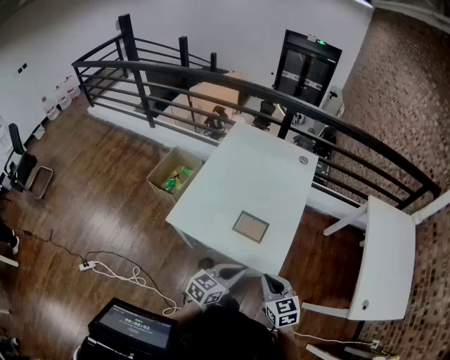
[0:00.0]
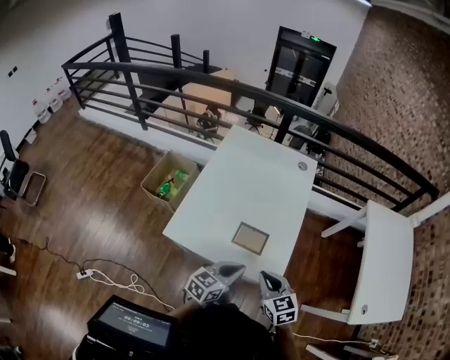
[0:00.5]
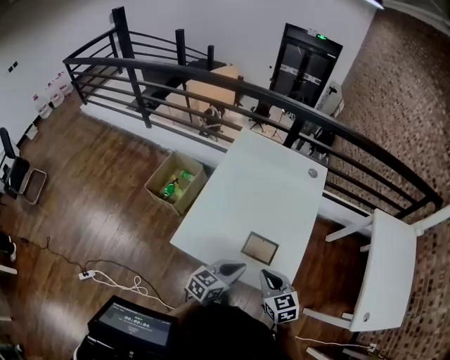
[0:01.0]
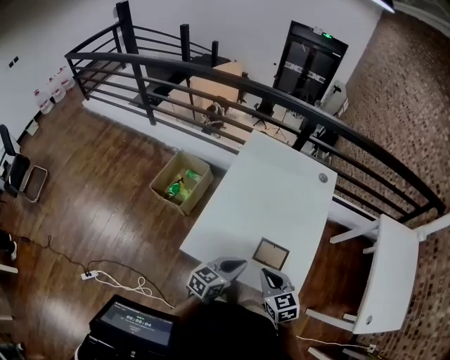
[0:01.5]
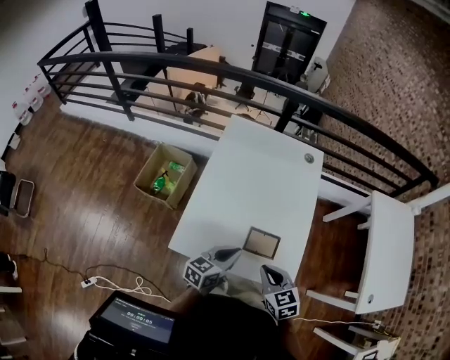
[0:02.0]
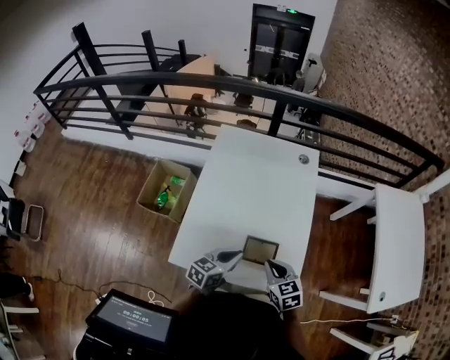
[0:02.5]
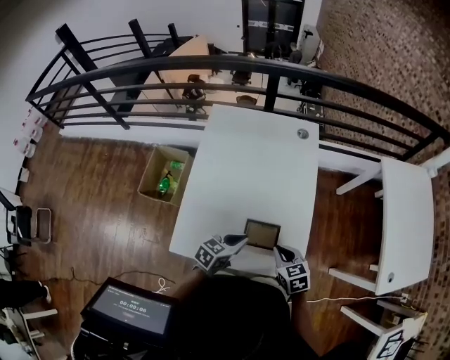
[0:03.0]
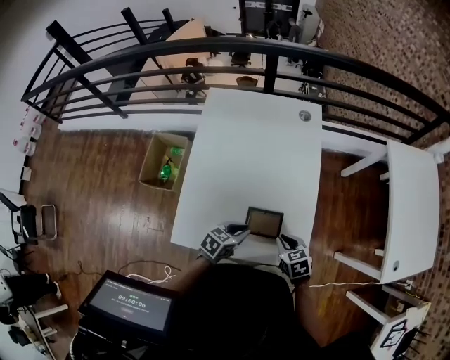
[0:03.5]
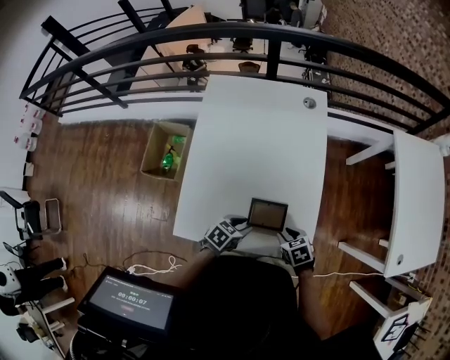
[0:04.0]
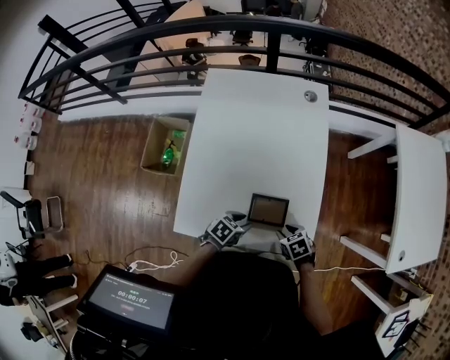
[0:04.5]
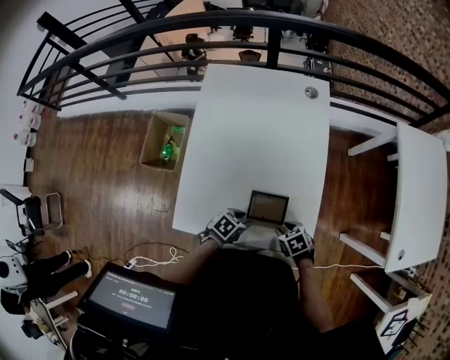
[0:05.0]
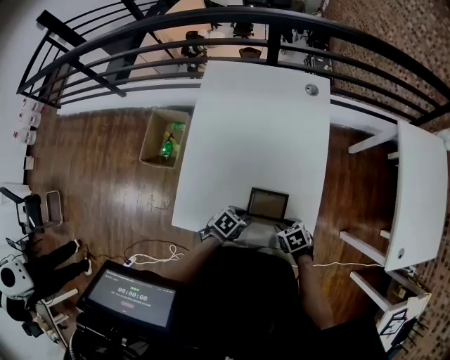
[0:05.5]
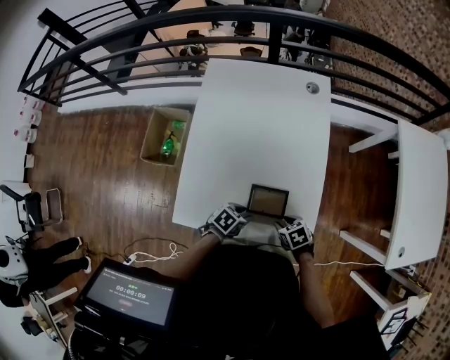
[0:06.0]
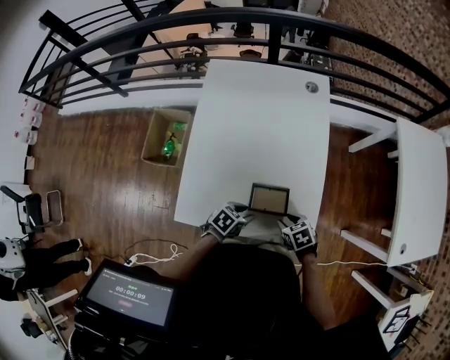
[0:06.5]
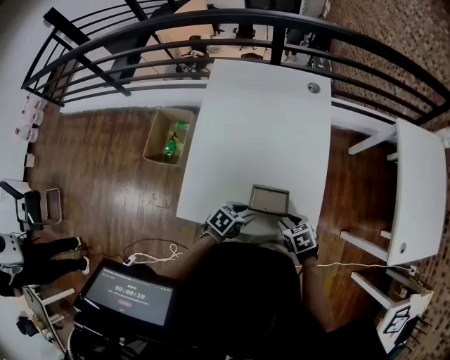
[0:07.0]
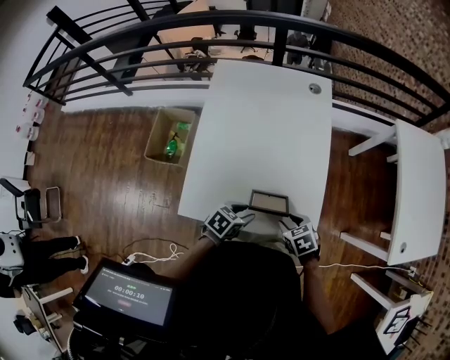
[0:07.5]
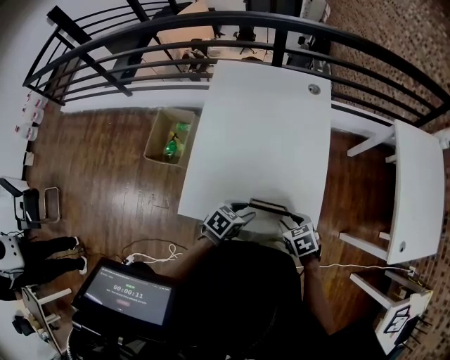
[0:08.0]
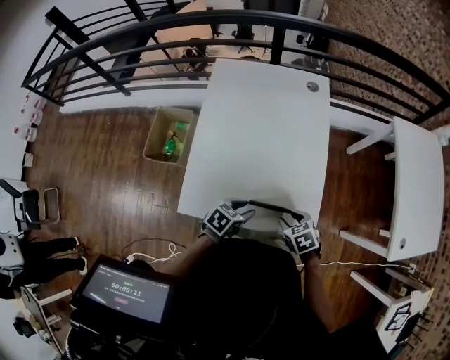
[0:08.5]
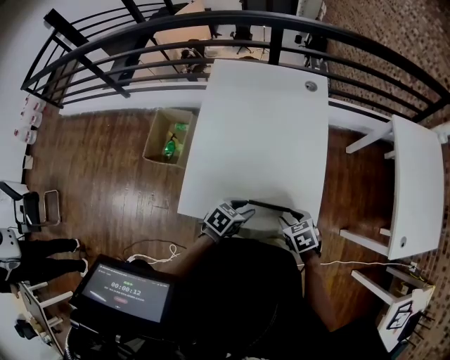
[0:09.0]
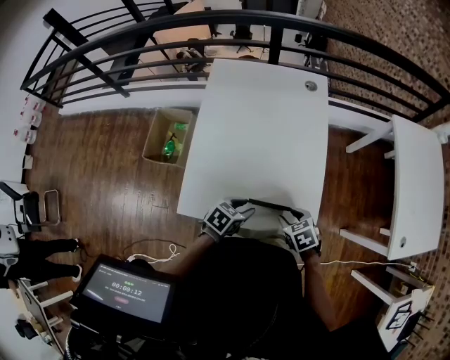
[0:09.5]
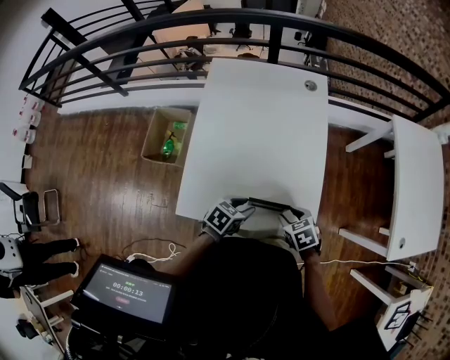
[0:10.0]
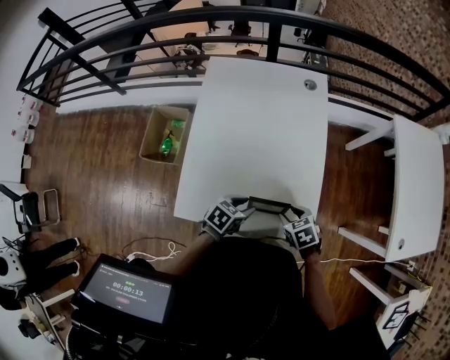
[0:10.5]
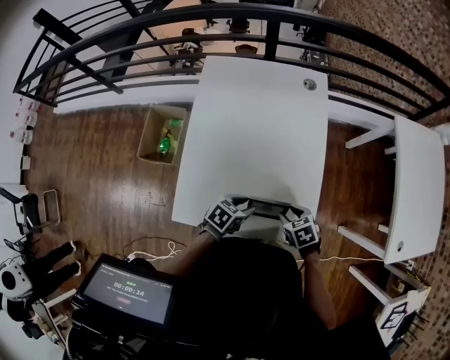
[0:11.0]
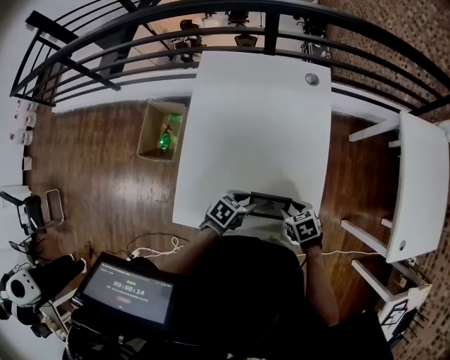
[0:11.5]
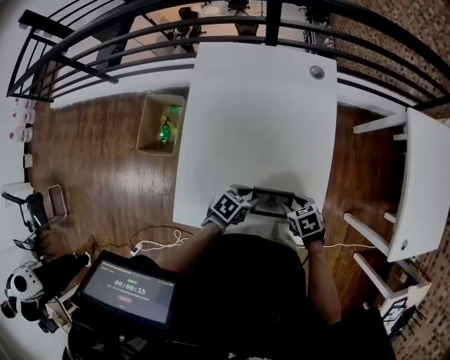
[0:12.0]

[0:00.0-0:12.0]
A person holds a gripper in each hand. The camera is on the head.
0:00.0 to 0:02.0: The left gripper goes about 20 cm forward and to the left; the right gripper travels to the left and forward by approximately 20 cm.
0:02.0 to 0:04.0: The two grippers go about 20 cm downward and to the right. The left gripper angles its fingers downward, by roughly 30 degrees, and opens its fingers; the right gripper rotates roughly 30 degrees, and opens its fingers.
0:04.0 to 0:06.0: The grippers move only a little.
0:06.0 to 0:08.0: Both grippers move upward, about 10 cm.
0:08.0 to 0:10.0: Both grippers stay put.
0:10.0 to 0:12.0: The left gripper ends up roughly 10 cm from where it was. Meanwhile the right gripper ends up about 10 cm from where it was.

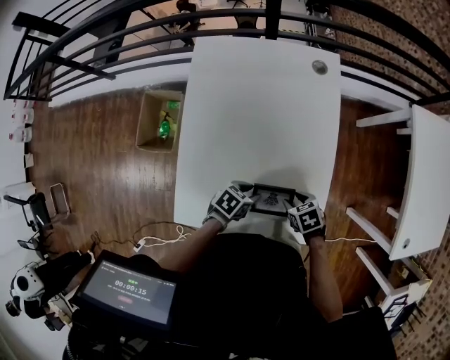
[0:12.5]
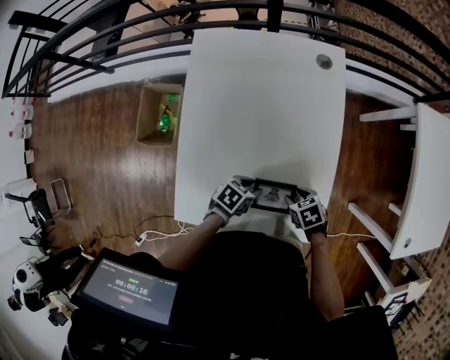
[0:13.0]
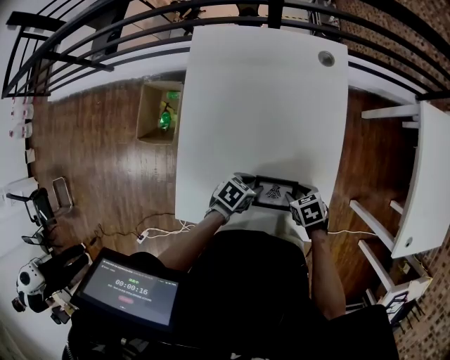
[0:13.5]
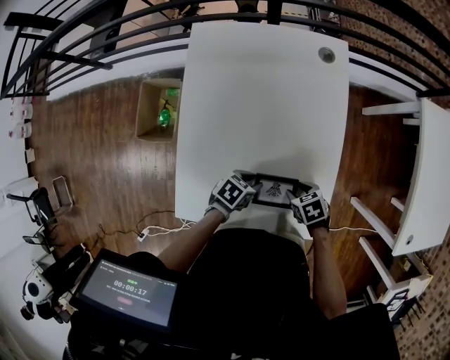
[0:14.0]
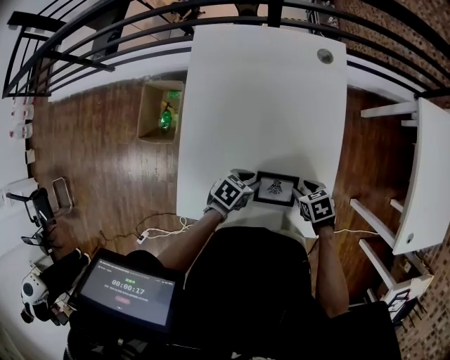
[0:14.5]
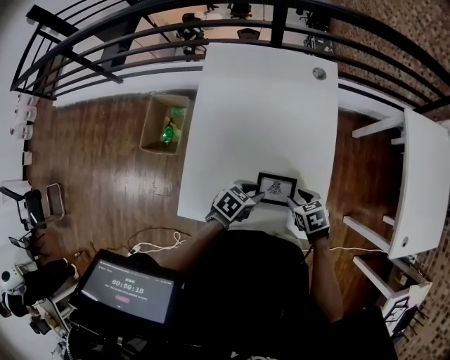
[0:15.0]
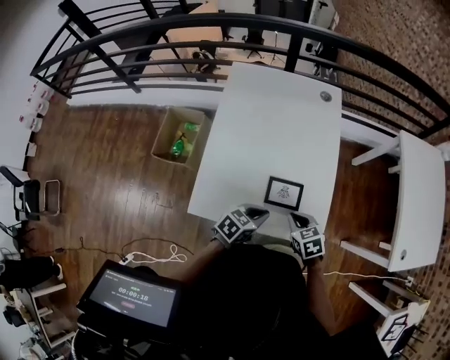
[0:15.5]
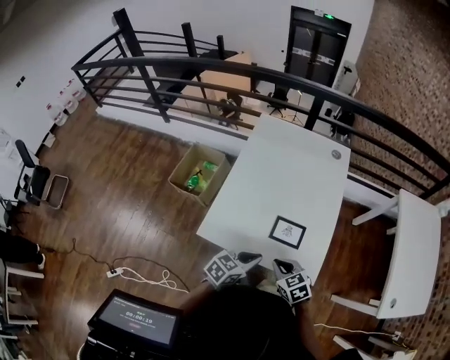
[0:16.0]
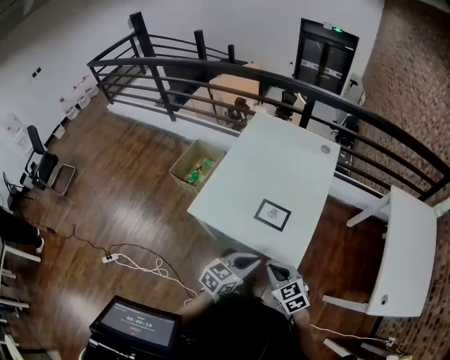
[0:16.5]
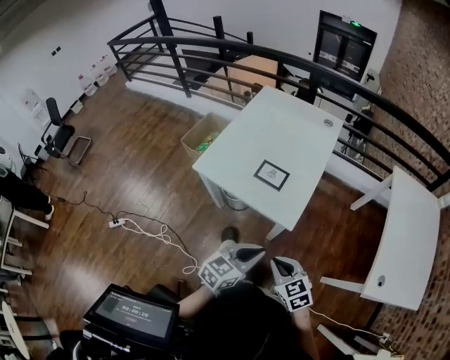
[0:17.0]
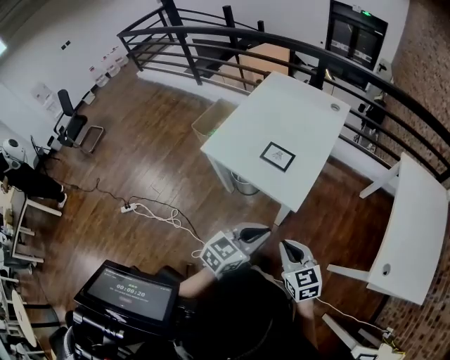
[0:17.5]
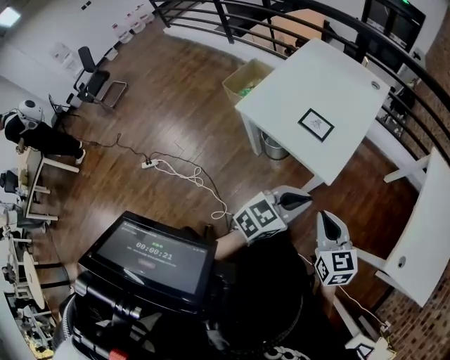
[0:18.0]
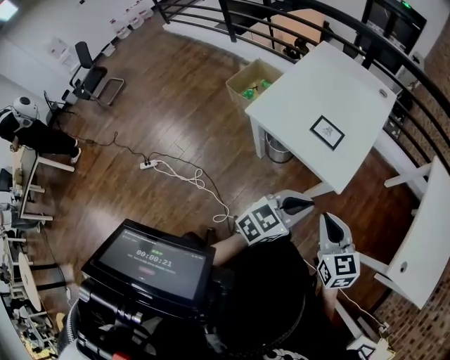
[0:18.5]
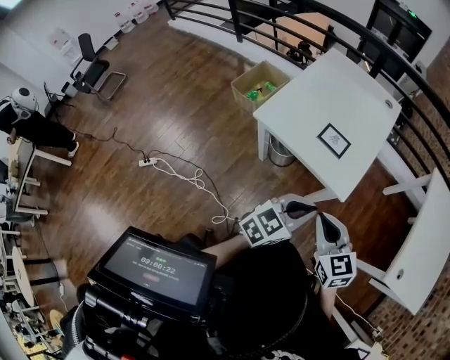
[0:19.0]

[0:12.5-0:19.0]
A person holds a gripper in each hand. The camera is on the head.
0:12.5 to 0:14.5: The grippers move only a little.
0:14.5 to 0:17.0: The two grippers travel together, approximately 40 cm. The left gripper angles its fingers upward, by about 30 degrees, and closes. The right gripper rotates roughly 50 degrees, and closes up.
0:17.0 to 0:19.0: The right gripper heads upward and to the left, covering about 15 cm. The left gripper heads to the left and upward, covering about 10 cm.

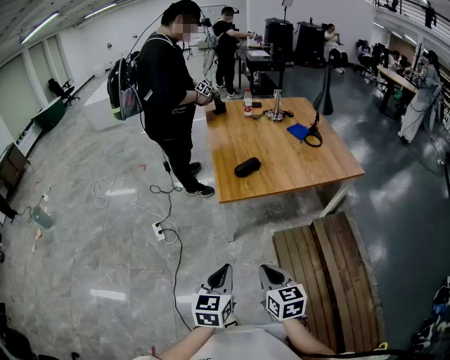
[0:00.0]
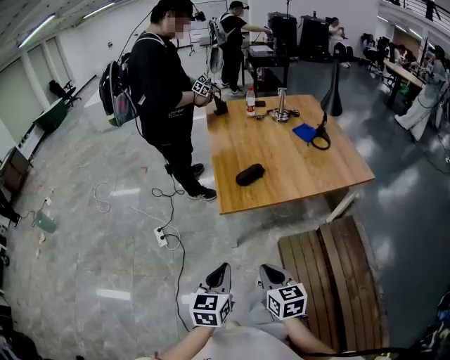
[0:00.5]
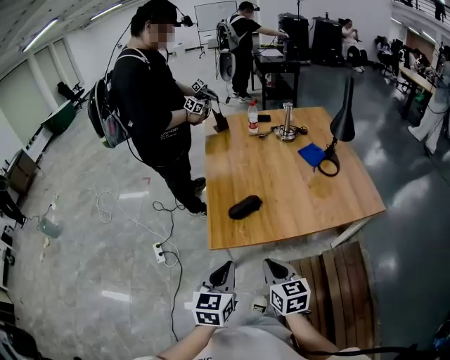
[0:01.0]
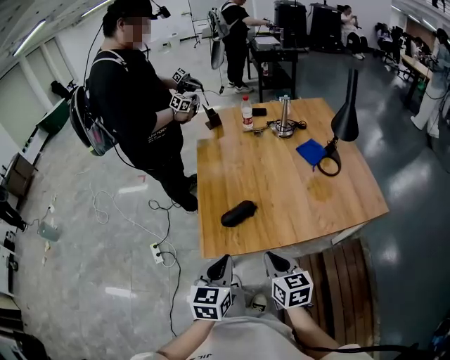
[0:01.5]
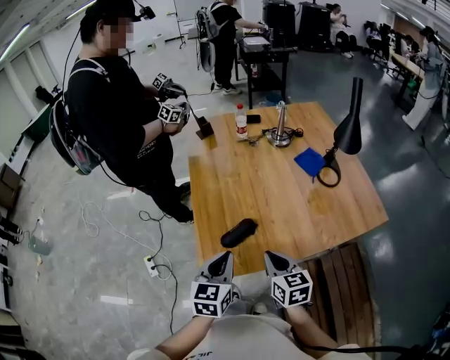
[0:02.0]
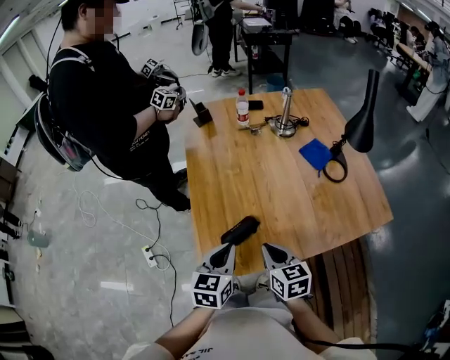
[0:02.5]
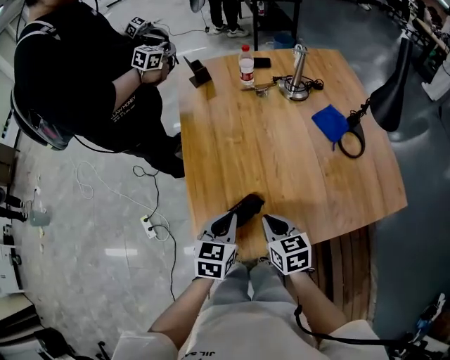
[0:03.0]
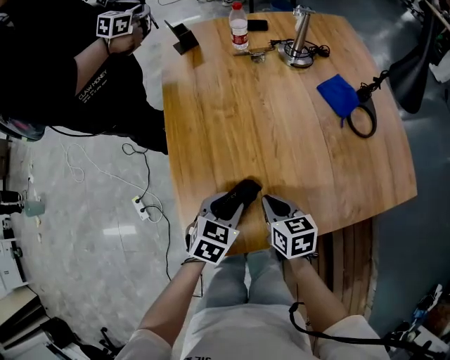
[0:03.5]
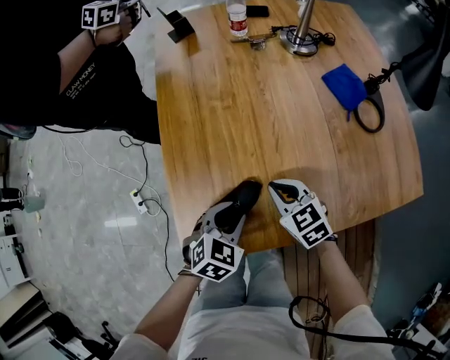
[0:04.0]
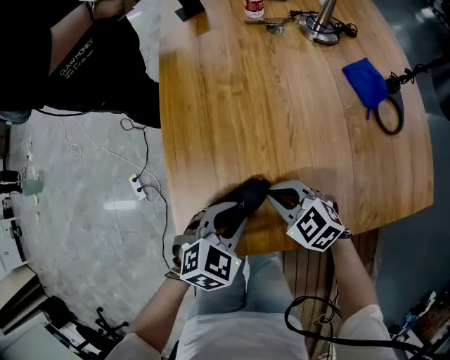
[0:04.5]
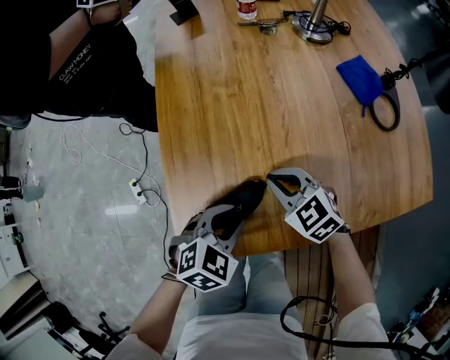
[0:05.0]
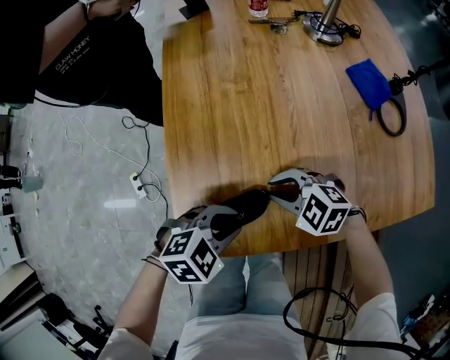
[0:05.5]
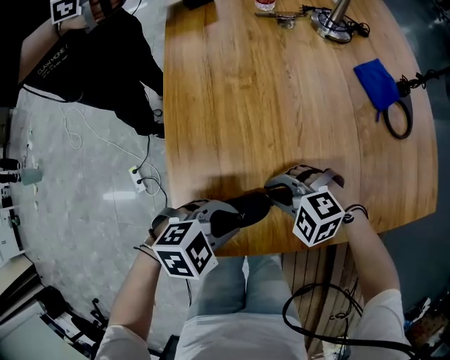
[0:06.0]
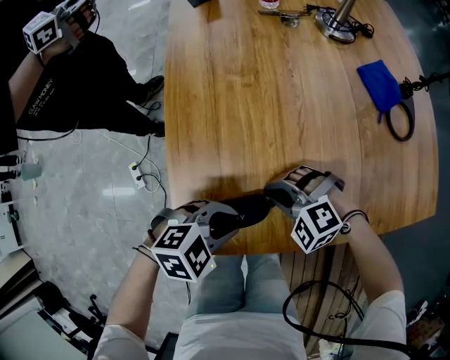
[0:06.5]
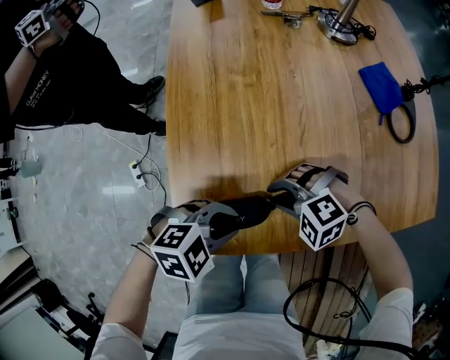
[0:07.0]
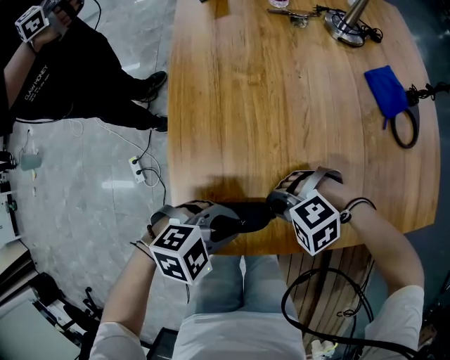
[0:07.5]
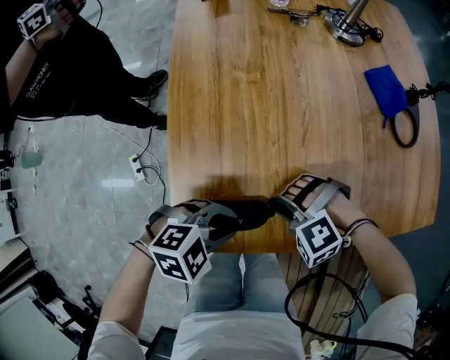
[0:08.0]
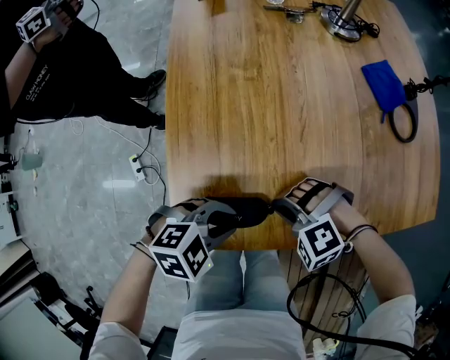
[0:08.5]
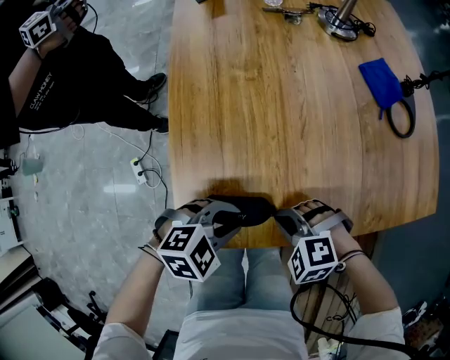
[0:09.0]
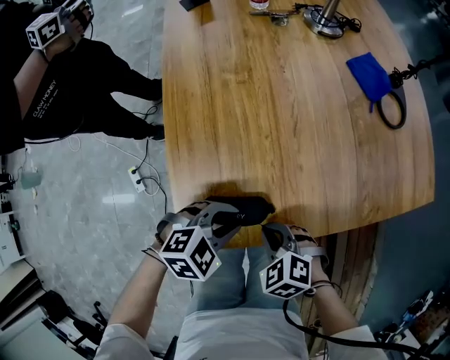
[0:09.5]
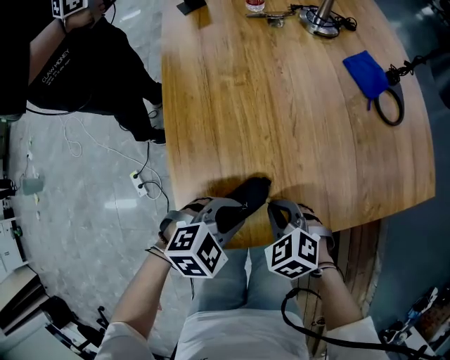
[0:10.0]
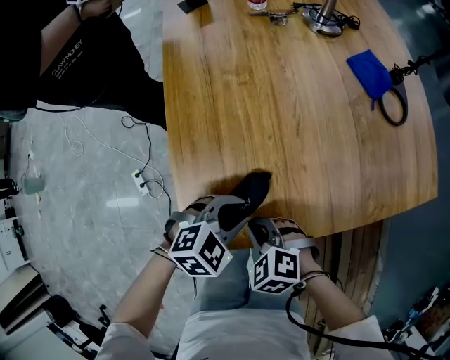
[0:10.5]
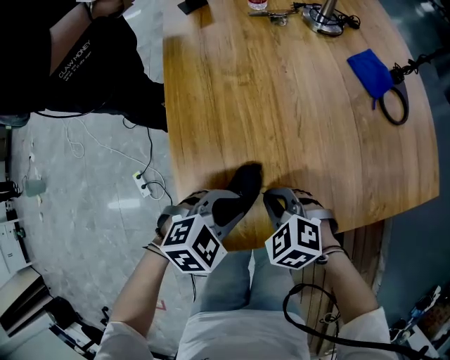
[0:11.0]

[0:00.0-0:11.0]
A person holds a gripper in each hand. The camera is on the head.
0:00.0 to 0:02.0: Both grippers are carried forward, about 50 cm.
0:02.0 to 0:03.5: The grippers both shift downward and forward by about 25 cm. The left gripper turns by about 30 degrees, and opens up.
0:03.5 to 0:05.5: The right gripper rotates around the line of its fingers by about 60 degrees, counterclockwise from behind, while the left gripper shifts by some 5 cm, and changes its angle by some 40 degrees.
0:05.5 to 0:07.5: The right gripper moves roughly 5 cm, and rotates approximately 40 degrees.
0:07.5 to 0:09.0: The right gripper rotates some 30 degrees.
0:09.0 to 0:11.0: The right gripper ends up some 5 cm from where it was, and rotates approximately 30 degrees.
